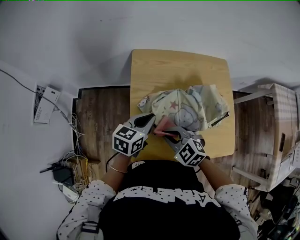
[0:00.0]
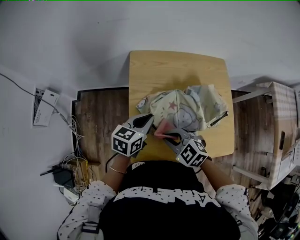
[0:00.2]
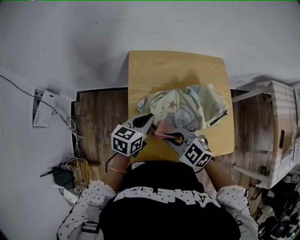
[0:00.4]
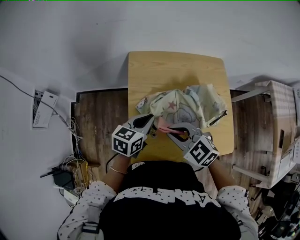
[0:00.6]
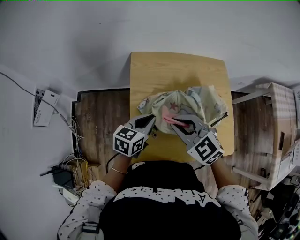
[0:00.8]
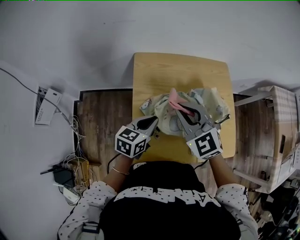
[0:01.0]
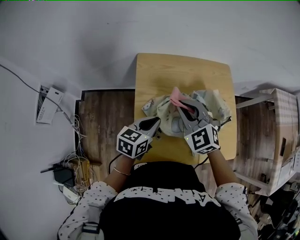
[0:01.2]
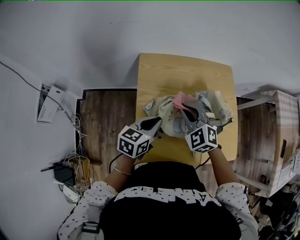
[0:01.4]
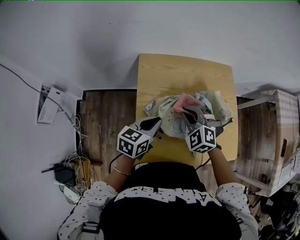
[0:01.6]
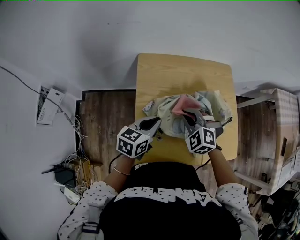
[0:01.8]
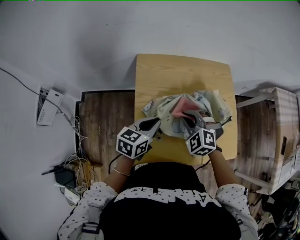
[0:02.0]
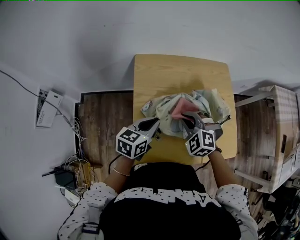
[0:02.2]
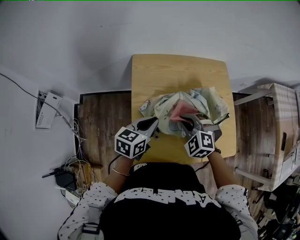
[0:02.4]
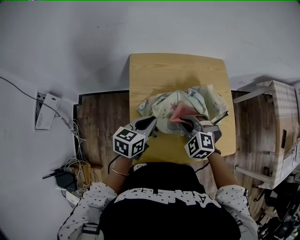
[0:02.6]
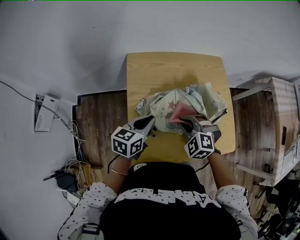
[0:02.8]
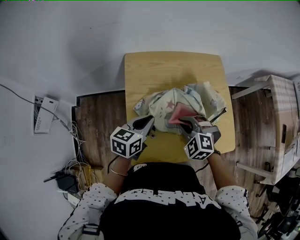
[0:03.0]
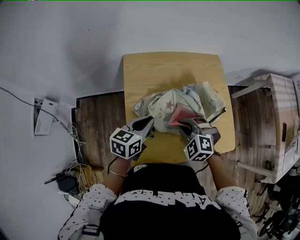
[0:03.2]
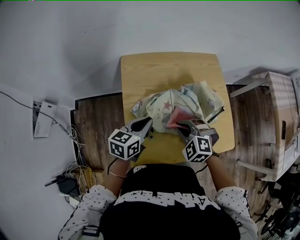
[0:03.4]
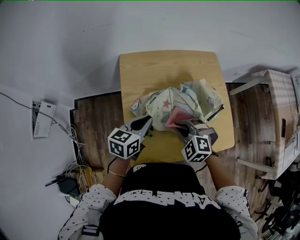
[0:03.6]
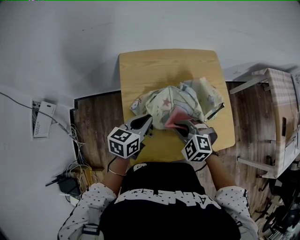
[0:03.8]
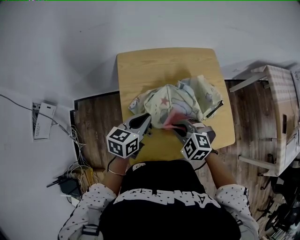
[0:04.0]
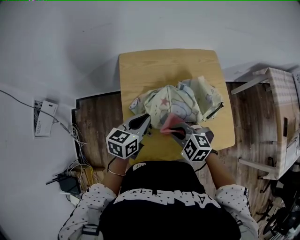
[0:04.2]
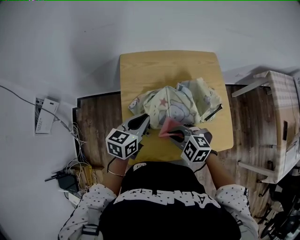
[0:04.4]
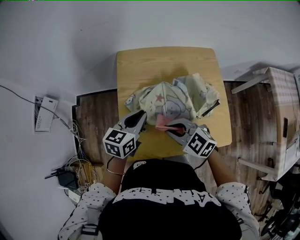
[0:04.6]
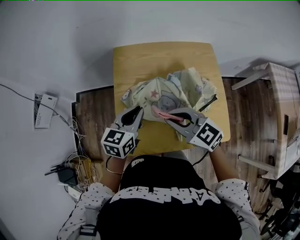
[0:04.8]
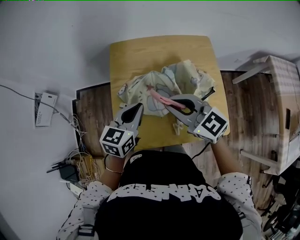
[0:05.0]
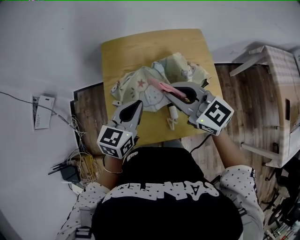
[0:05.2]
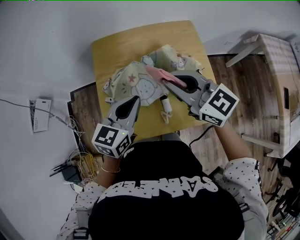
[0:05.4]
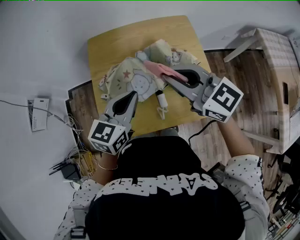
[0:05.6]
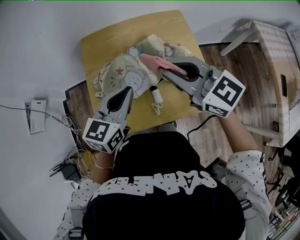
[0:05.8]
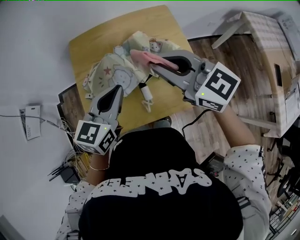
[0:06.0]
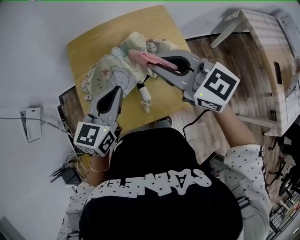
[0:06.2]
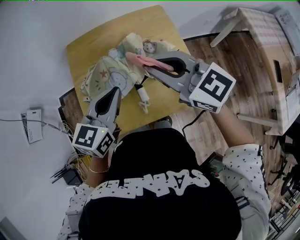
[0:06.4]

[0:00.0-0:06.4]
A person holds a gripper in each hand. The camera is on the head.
0.0 to 1.6 s: The right gripper heads forward and to the right, covering roughly 15 cm, moves approximately 15 cm upward and comes back, and turns by roughly 30 degrees.
1.6 to 3.2 s: The right gripper is displaced backward by roughly 5 cm.
3.2 to 4.8 s: The right gripper travels upward by approximately 10 cm, and angles its fingers upward, by approximately 30 degrees.
4.8 to 6.4 s: The right gripper goes approximately 20 cm to the right and upward; the left gripper travels to the right, upward and backward by approximately 15 cm.

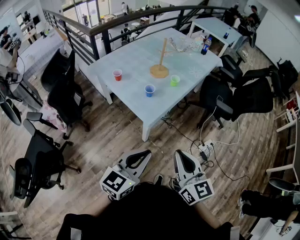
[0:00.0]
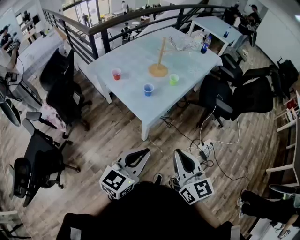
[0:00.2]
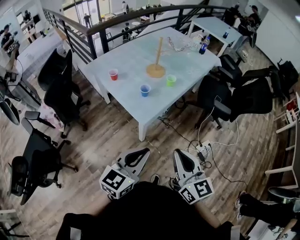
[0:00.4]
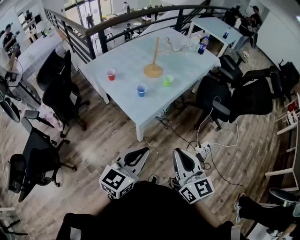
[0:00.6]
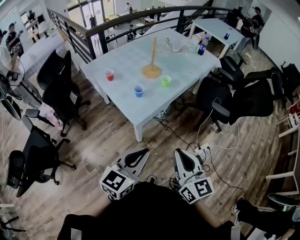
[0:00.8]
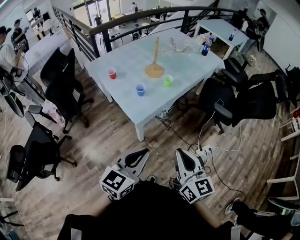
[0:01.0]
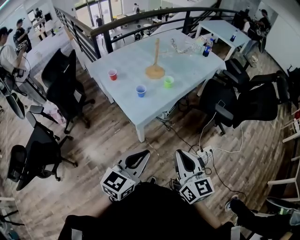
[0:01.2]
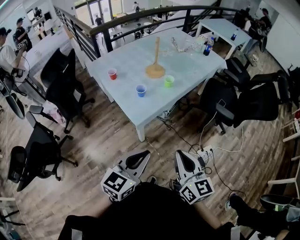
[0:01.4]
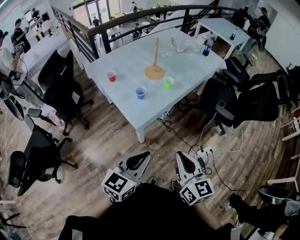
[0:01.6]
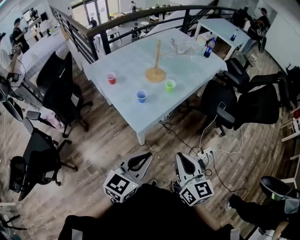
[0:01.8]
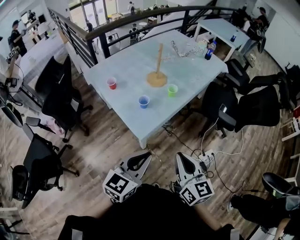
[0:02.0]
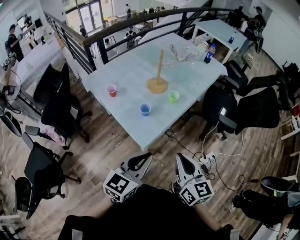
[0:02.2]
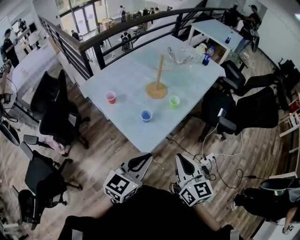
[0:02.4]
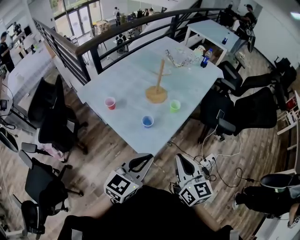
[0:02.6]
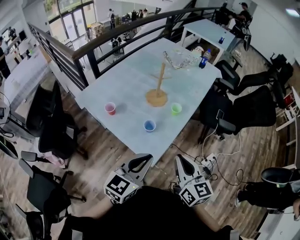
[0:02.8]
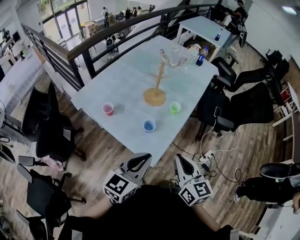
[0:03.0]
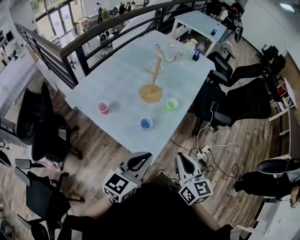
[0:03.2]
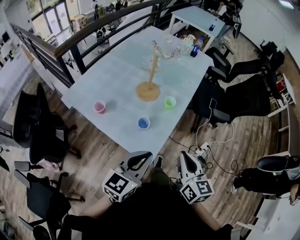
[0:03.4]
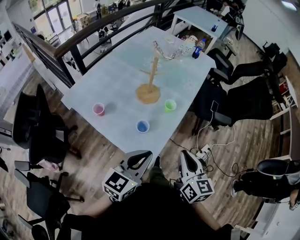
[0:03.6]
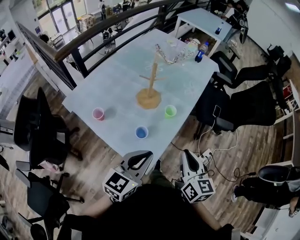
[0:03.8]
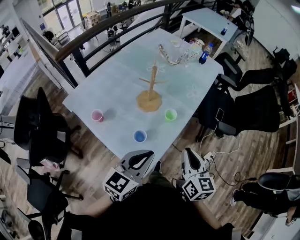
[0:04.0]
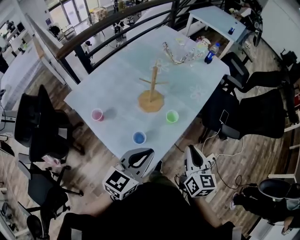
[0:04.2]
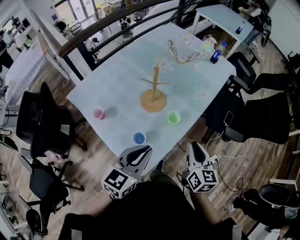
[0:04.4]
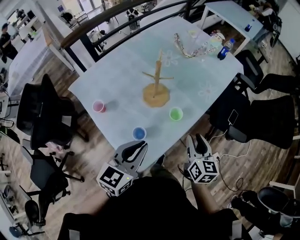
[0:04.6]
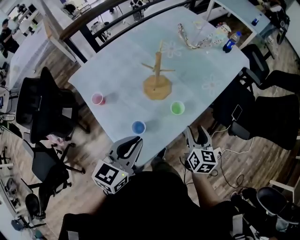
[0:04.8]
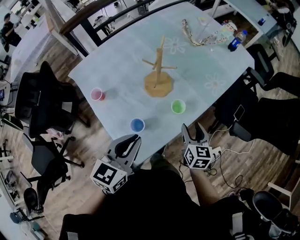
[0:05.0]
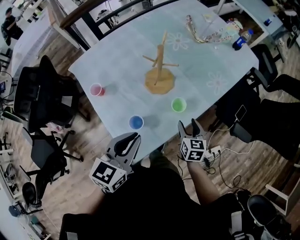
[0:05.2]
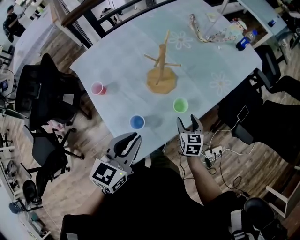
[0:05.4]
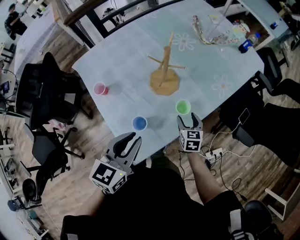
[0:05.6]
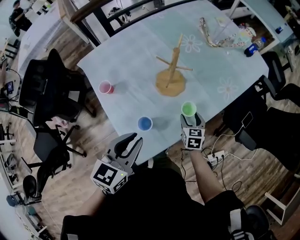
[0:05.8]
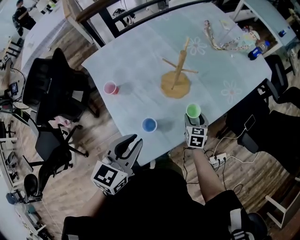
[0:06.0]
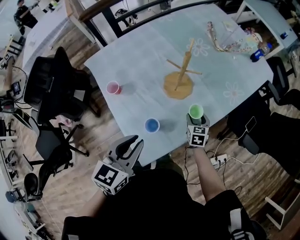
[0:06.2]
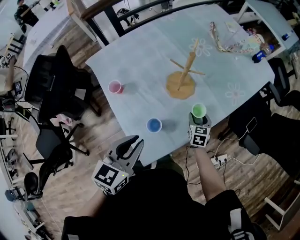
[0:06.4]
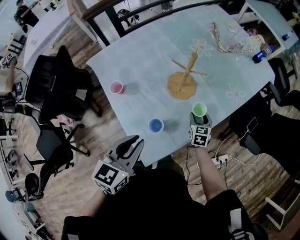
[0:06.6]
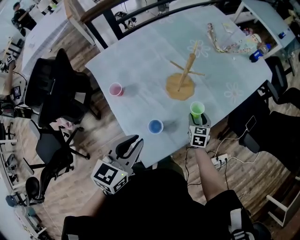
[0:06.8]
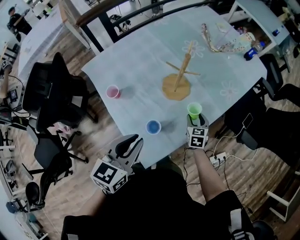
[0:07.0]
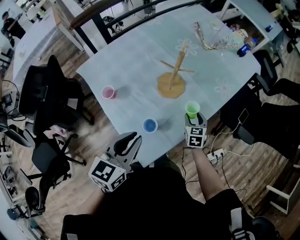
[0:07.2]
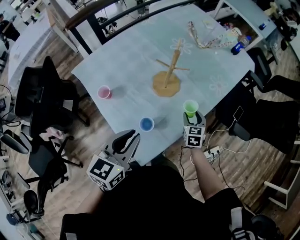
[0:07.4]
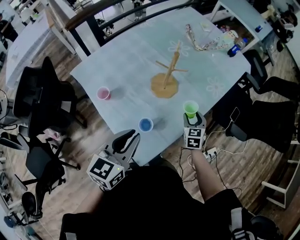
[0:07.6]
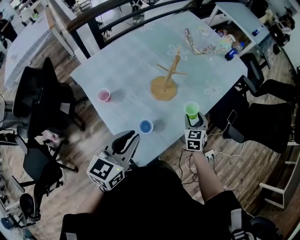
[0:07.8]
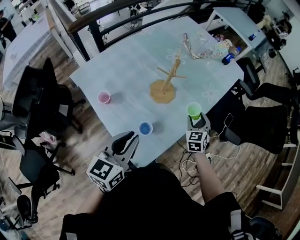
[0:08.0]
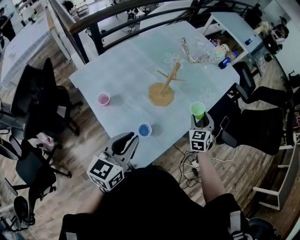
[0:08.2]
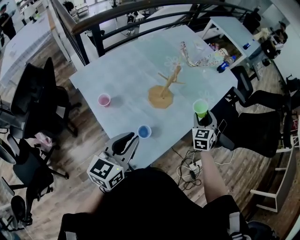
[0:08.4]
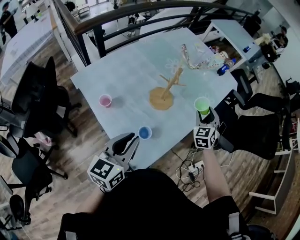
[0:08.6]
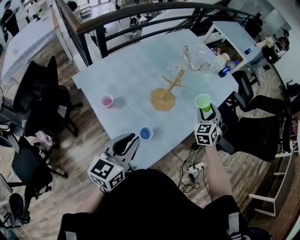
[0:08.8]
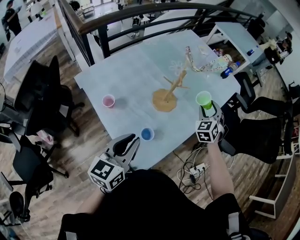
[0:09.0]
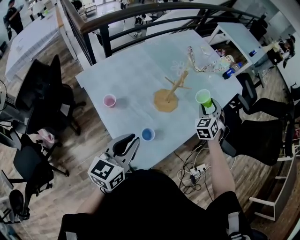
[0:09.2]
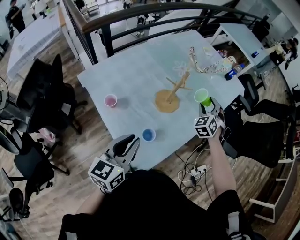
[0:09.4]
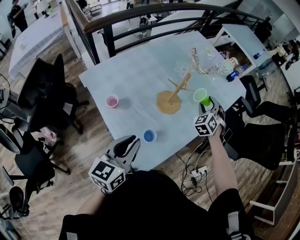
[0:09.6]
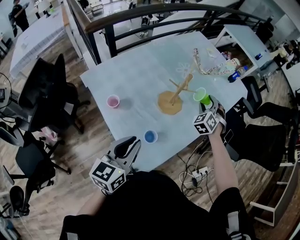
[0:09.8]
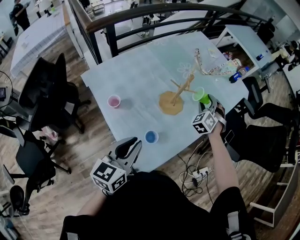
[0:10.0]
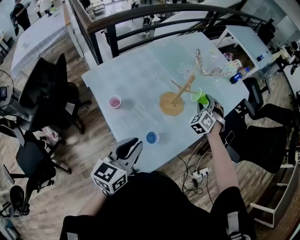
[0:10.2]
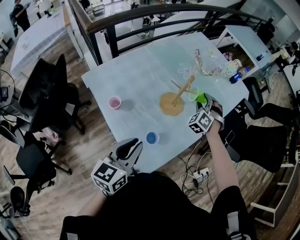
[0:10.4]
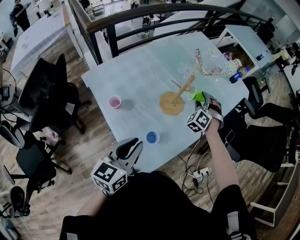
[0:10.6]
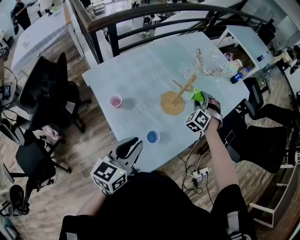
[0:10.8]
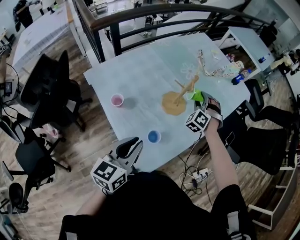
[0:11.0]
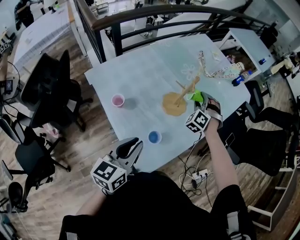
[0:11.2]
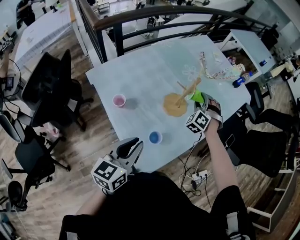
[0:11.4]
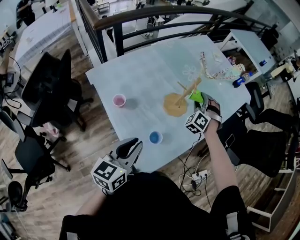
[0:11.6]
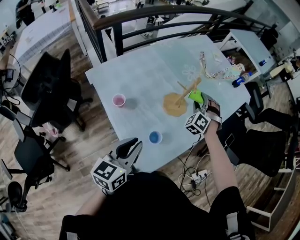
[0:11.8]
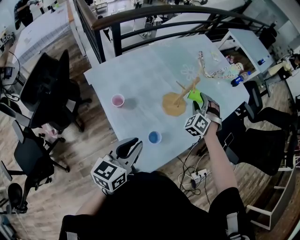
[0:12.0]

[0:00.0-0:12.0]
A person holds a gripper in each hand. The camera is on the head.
0.0 to 1.6 s: Both grippers travel together to the right and forward, about 15 cm.
1.6 to 3.0 s: Both grippers travel together to the left and forward, some 30 cm.
3.0 to 4.4 s: The two grippers go approximately 25 cm forward.
4.4 to 6.0 s: The right gripper travels downward and forward by about 30 cm, changes its angle by roughly 30 degrees, and opens its fingers; the left gripper heads to the left, covering roughly 5 cm, and rotates roughly 20 degrees.
6.0 to 7.6 s: The right gripper is displaced upward by about 5 cm.
7.6 to 9.0 s: The left gripper ends up approximately 5 cm from where it was. Meanwhile the right gripper moves upward and forward, some 20 cm, and swivels approximately 30 degrees.
9.0 to 10.4 s: The right gripper heads to the left, covering approximately 5 cm, and swivels roughly 30 degrees.
10.4 to 12.0 s: The right gripper changes place by some 5 cm.

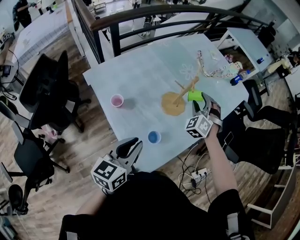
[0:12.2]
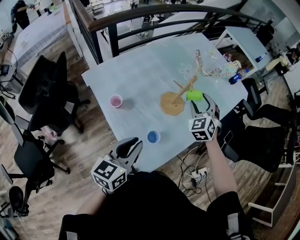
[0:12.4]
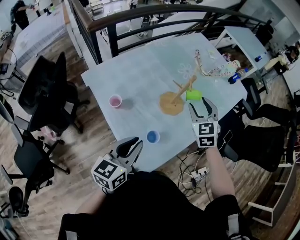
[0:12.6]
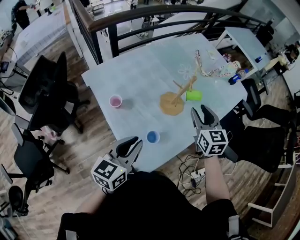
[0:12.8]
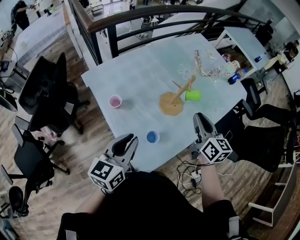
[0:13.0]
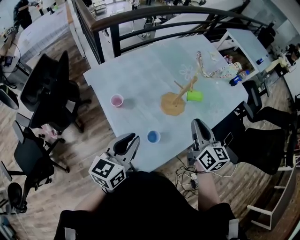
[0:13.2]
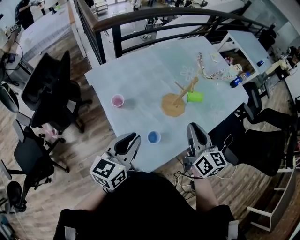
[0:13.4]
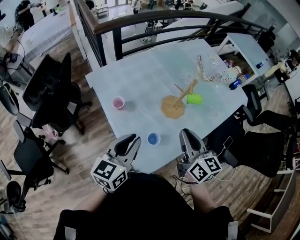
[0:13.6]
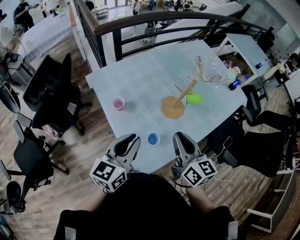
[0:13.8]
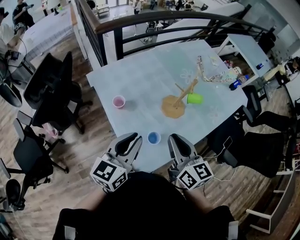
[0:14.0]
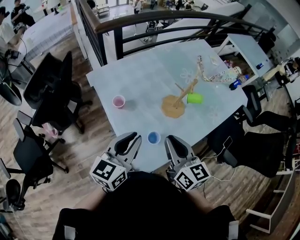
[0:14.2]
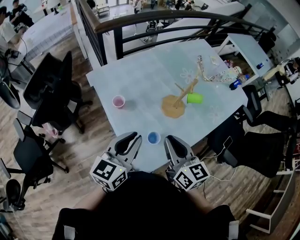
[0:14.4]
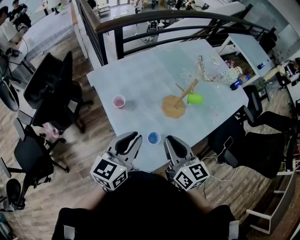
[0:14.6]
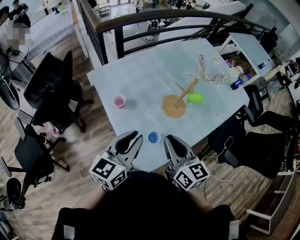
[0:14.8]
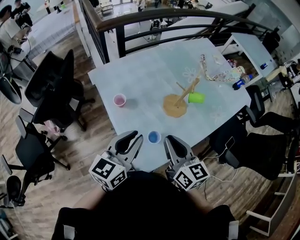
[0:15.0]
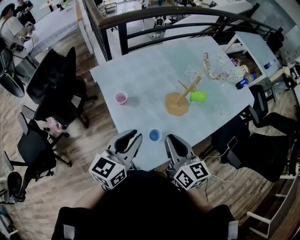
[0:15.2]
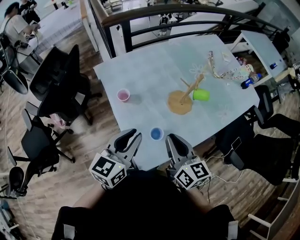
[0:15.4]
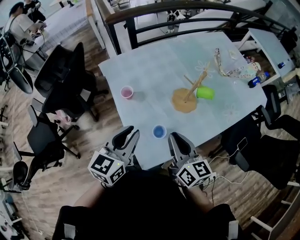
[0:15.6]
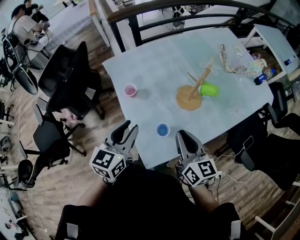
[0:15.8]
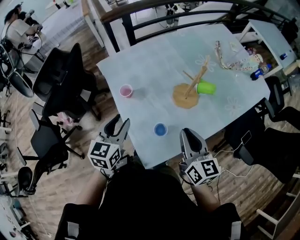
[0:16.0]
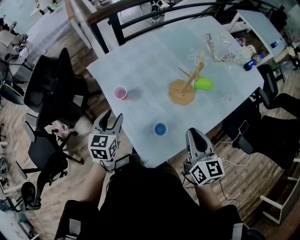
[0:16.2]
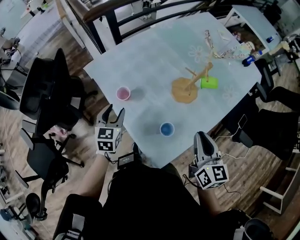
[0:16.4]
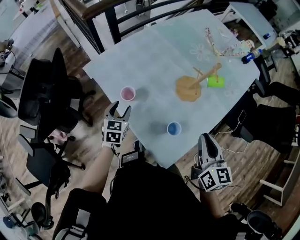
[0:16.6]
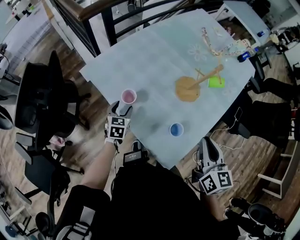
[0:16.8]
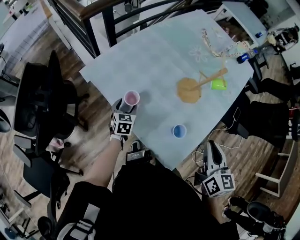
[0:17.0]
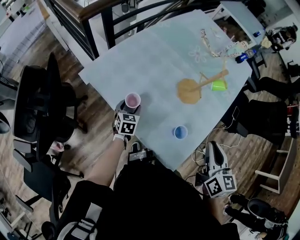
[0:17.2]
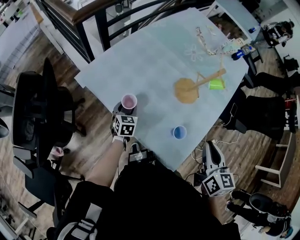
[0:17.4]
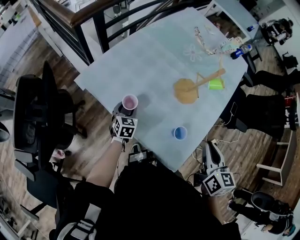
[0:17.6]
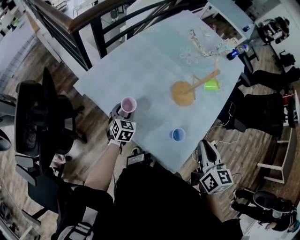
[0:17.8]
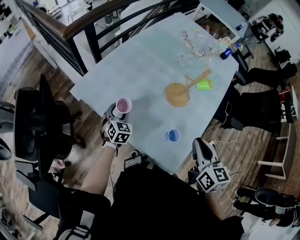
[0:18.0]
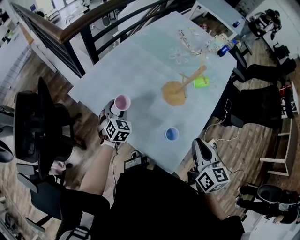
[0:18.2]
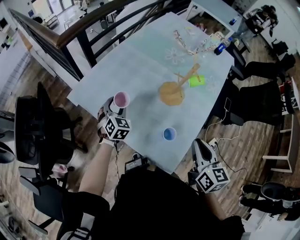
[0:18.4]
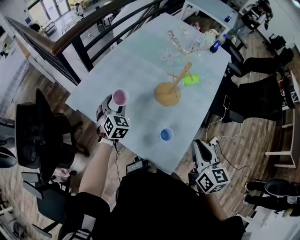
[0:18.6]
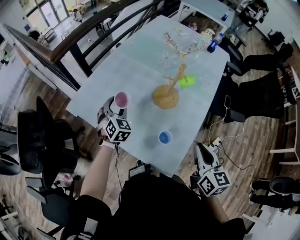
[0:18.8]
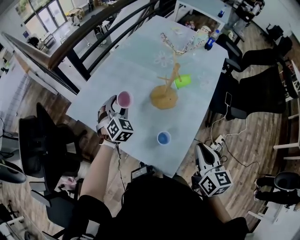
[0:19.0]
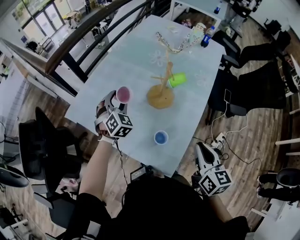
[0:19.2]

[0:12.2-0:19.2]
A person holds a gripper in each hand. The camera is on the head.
12.2 to 13.6 s: The right gripper moves backward and upward, about 20 cm, rolls clockwise, seen from behind, by roughly 80 degrees, and closes its fingers.
13.6 to 15.0 s: The right gripper moves roughly 5 cm.
15.0 to 16.4 s: The left gripper goes roughly 25 cm downward, forward and to the left, changes its angle by about 30 degrees, and opens. The right gripper goes approximately 5 cm to the right, and swivels approximately 20 degrees.
16.4 to 17.8 s: The right gripper is displaced to the left by about 10 cm; the left gripper goes some 15 cm downward and forward, and swivels some 20 degrees.
17.8 to 19.2 s: The left gripper moves upward, to the right and forward, roughly 25 cm, and turns by about 30 degrees. The right gripper heads to the right and backward, covering approximately 15 cm.
